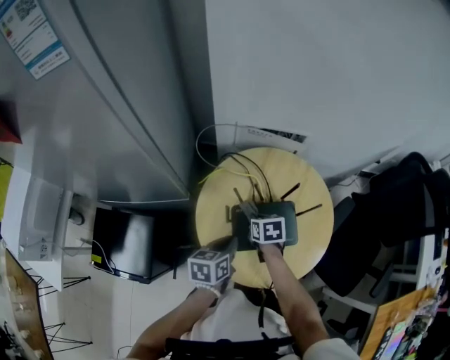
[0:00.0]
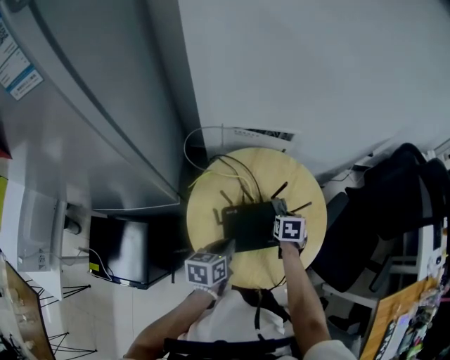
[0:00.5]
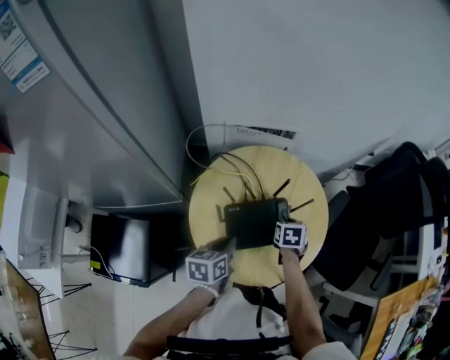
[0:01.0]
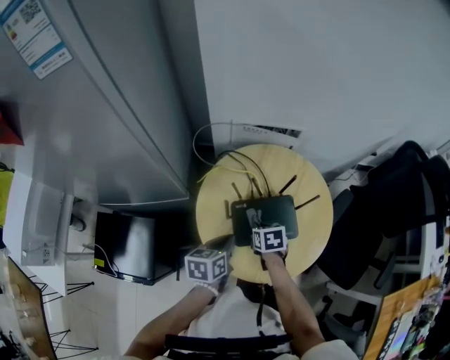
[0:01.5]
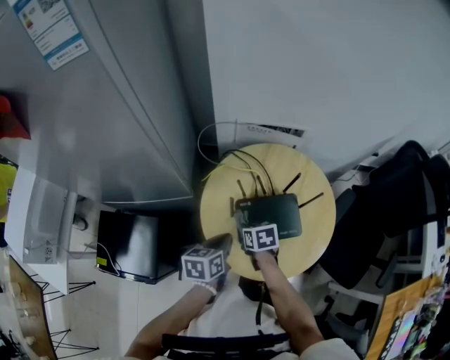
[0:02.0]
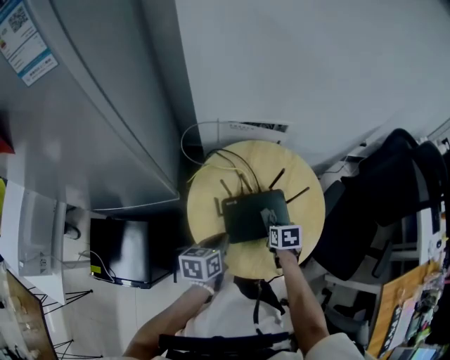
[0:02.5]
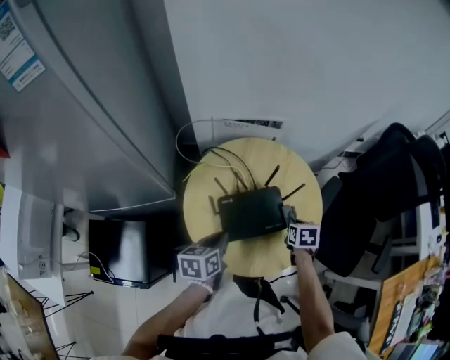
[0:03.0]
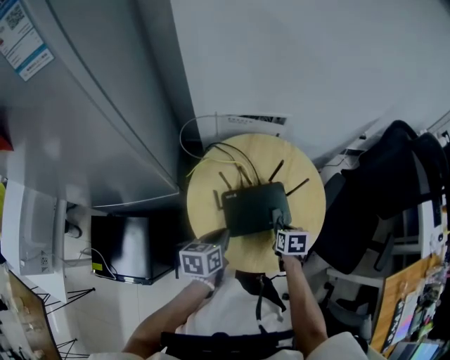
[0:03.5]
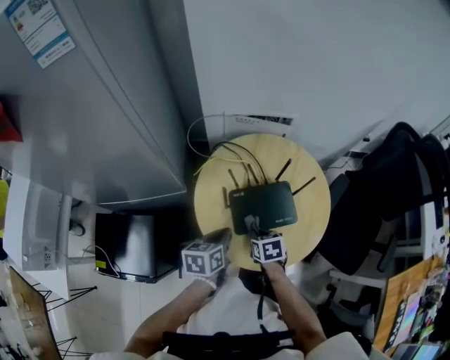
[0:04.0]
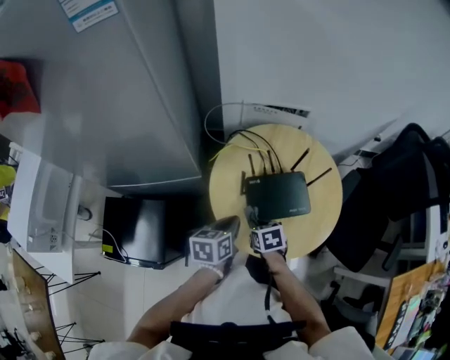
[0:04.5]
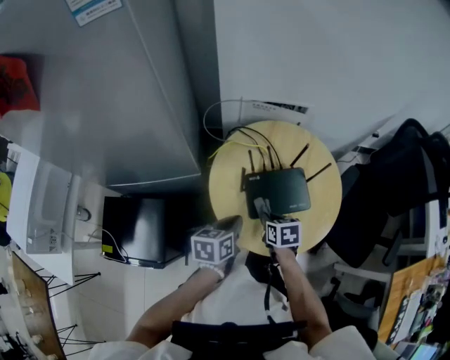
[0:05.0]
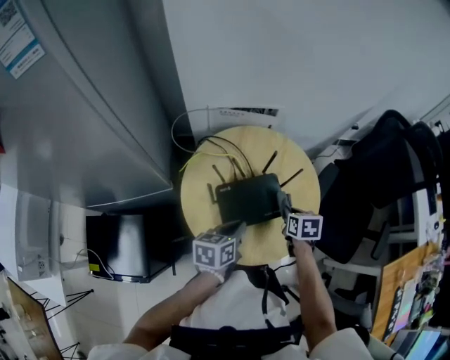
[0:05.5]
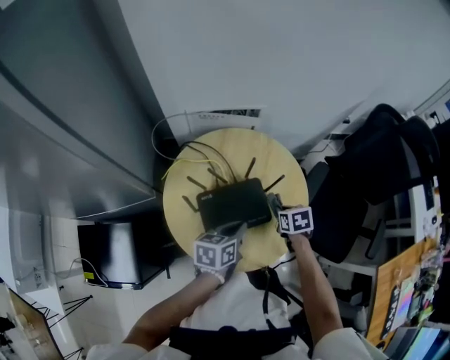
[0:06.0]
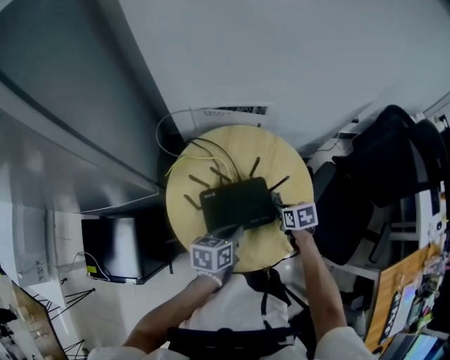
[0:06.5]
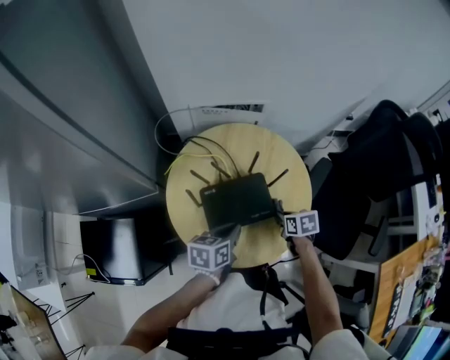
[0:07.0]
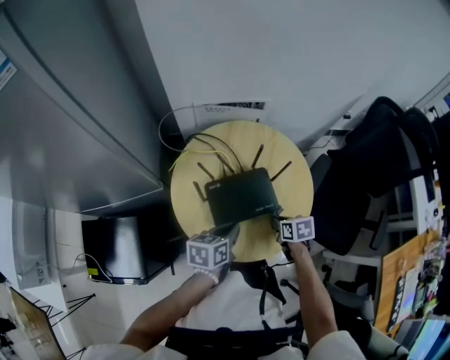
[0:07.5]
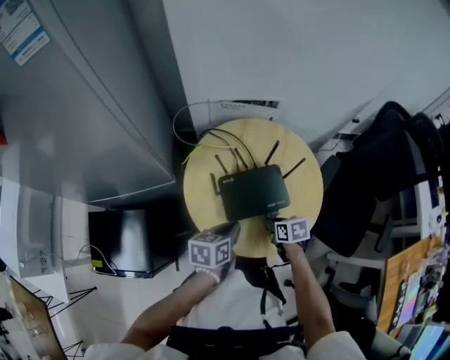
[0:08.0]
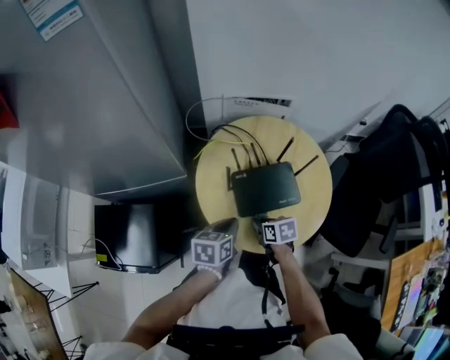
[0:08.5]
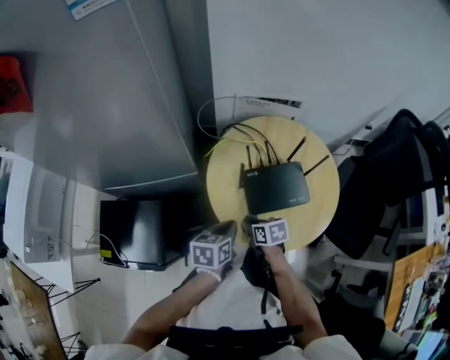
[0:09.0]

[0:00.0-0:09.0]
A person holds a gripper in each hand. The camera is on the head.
0:04.5 to 0:07.0: The right gripper is displaced to the right by about 25 cm, while the left gripper shifts some 15 cm to the right.
0:07.0 to 0:09.0: The right gripper is displaced to the left by approximately 30 cm; the left gripper is displaced to the left by approximately 15 cm.

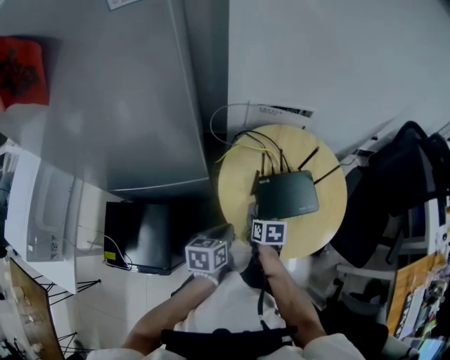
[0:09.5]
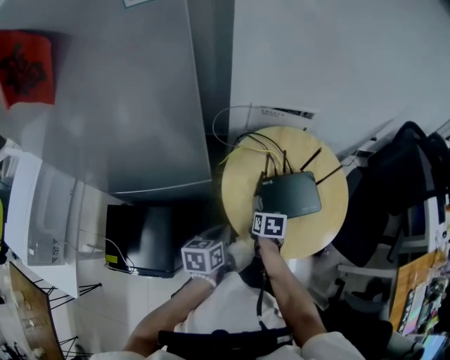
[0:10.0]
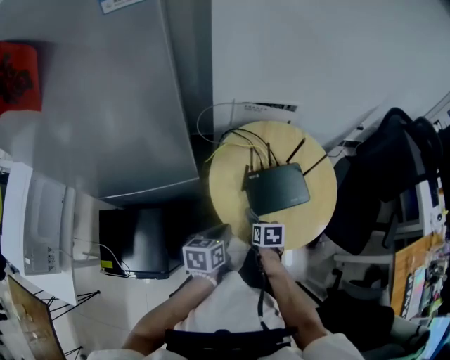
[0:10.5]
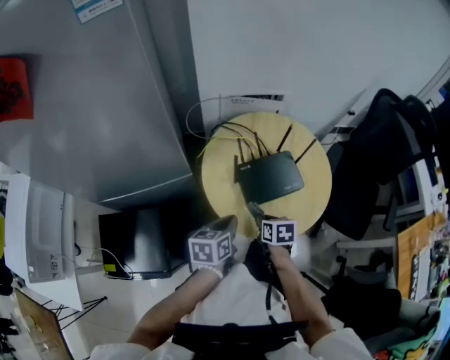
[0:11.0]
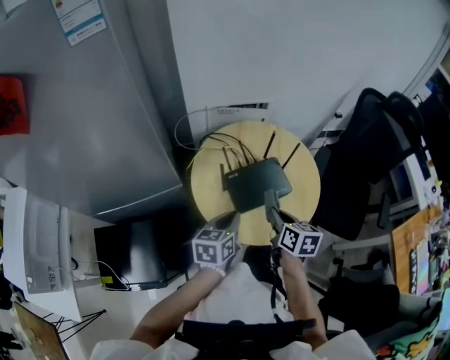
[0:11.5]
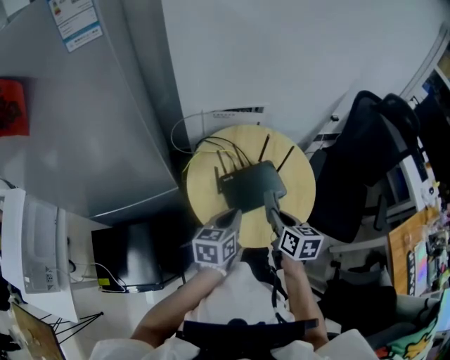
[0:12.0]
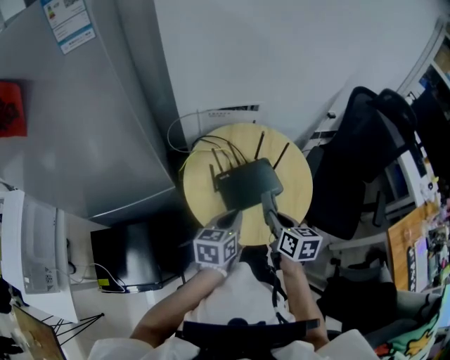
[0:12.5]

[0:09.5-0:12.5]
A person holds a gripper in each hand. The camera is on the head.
0:09.5 to 0:11.0: The right gripper travels to the right and backward by about 10 cm; the left gripper ends up some 5 cm from where it was.
0:11.0 to 0:12.5: The left gripper goes roughly 10 cm to the right and upward. The right gripper goes some 15 cm upward and to the right, and turns by some 20 degrees.

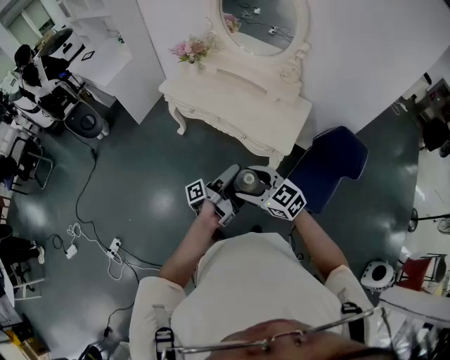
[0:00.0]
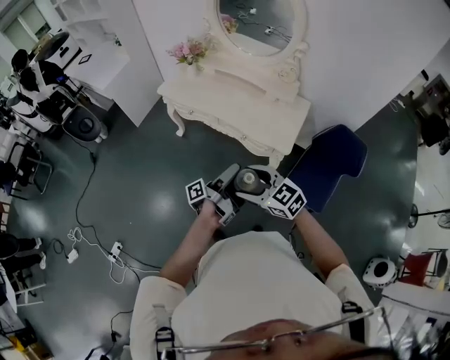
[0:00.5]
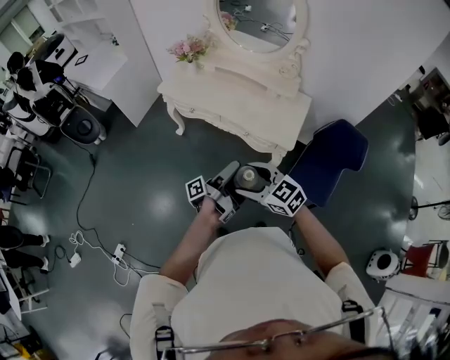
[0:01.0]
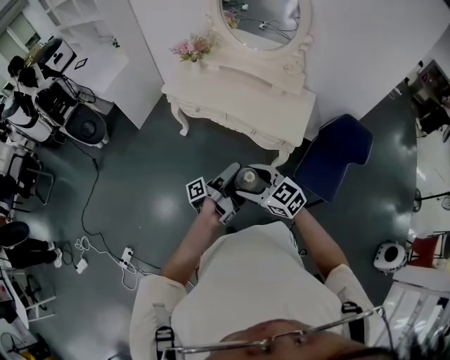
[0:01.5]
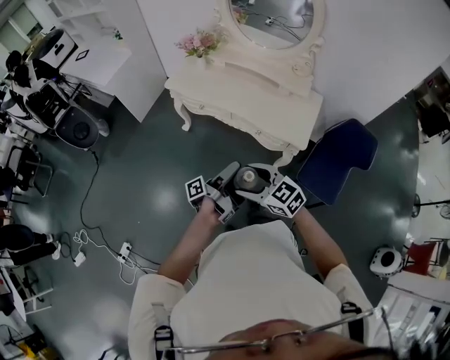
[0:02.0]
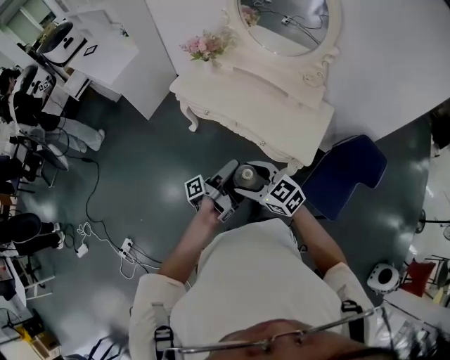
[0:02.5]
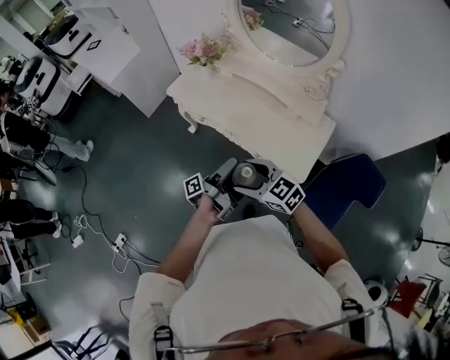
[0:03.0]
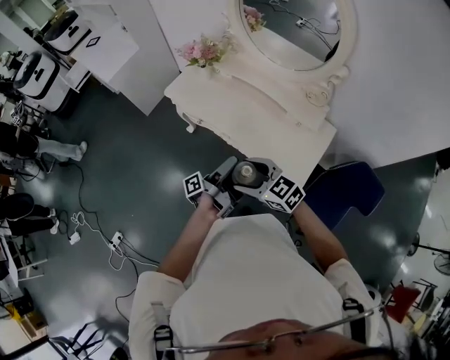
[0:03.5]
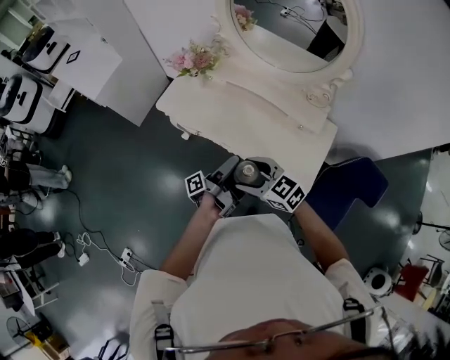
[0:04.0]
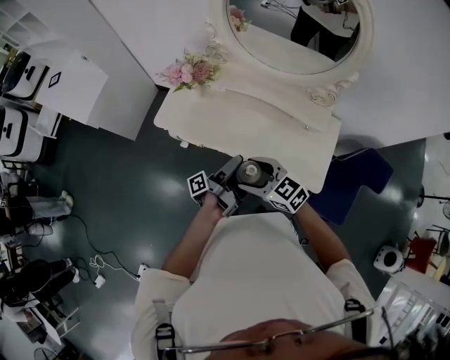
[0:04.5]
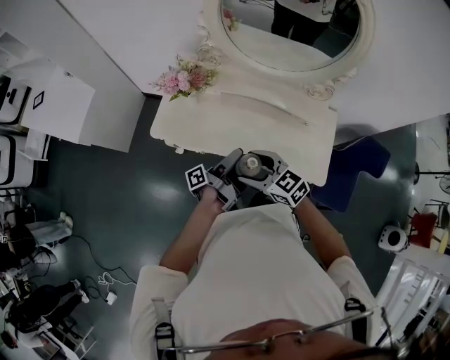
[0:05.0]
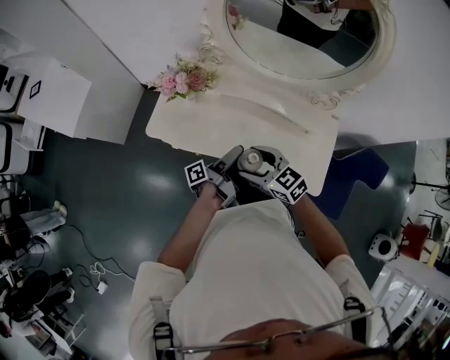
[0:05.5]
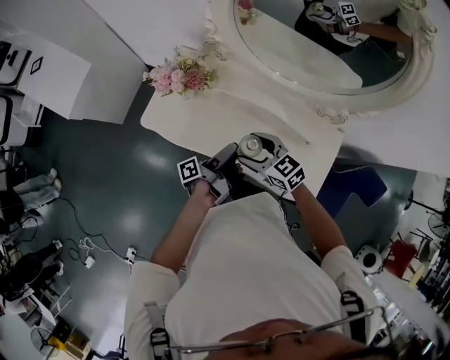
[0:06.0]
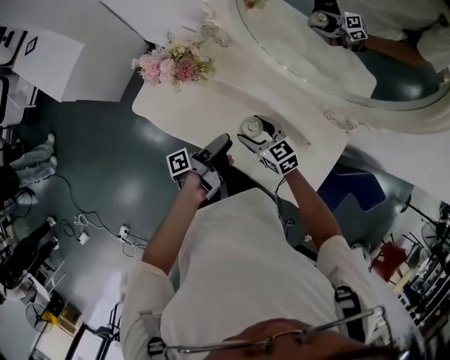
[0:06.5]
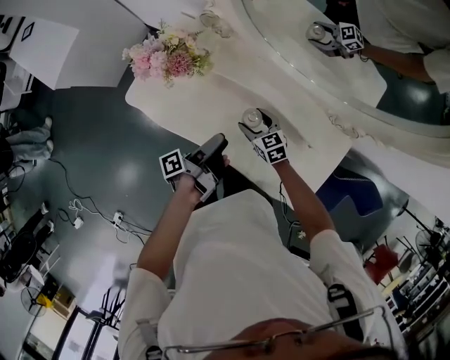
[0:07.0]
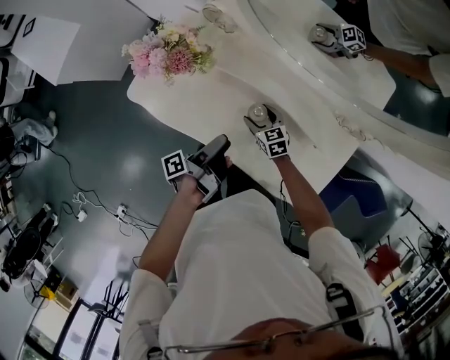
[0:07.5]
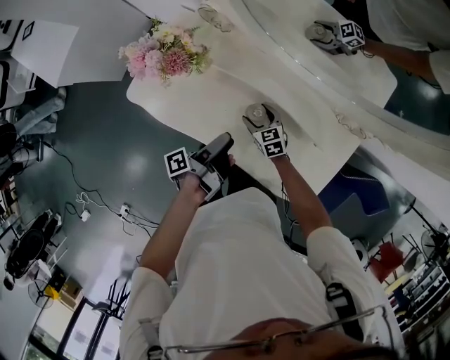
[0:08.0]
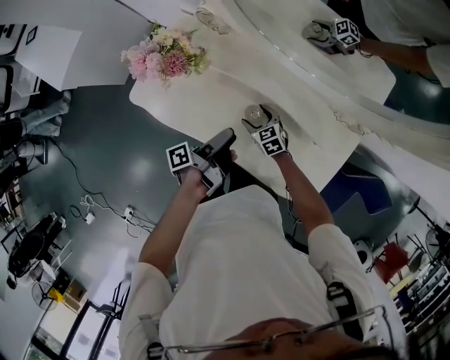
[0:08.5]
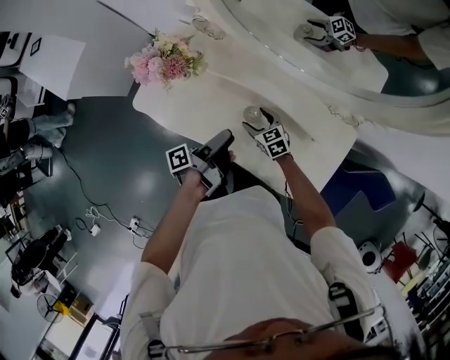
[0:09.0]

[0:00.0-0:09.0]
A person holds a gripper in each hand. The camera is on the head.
0:00.0 to 0:02.0: The right gripper moves approximately 10 cm.
0:02.0 to 0:04.5: The right gripper shifts by approximately 35 cm.
0:04.5 to 0:07.0: The right gripper ends up some 40 cm from where it was.

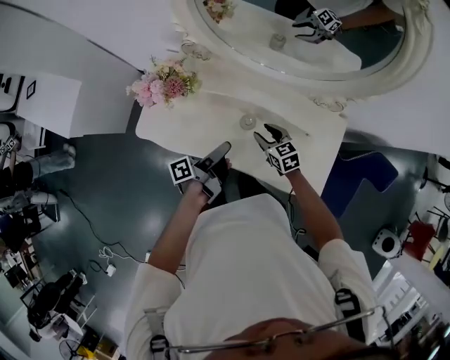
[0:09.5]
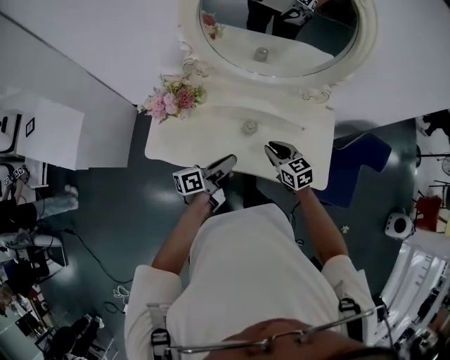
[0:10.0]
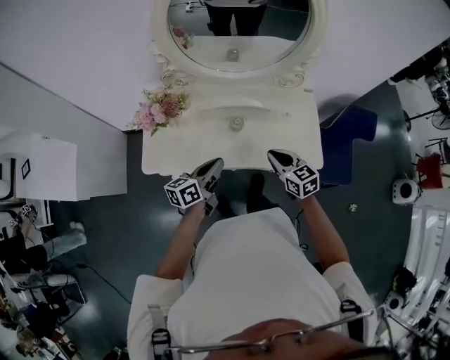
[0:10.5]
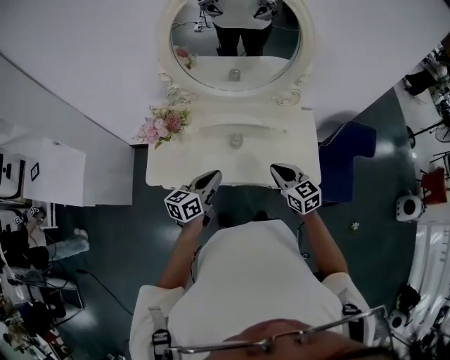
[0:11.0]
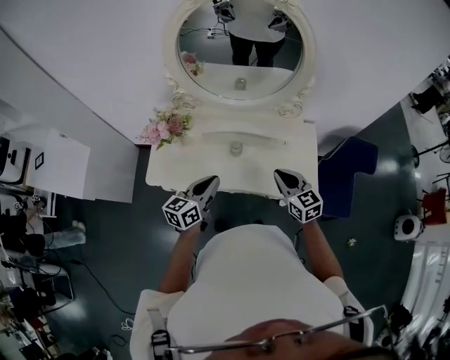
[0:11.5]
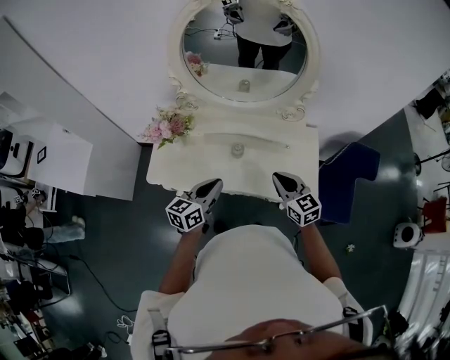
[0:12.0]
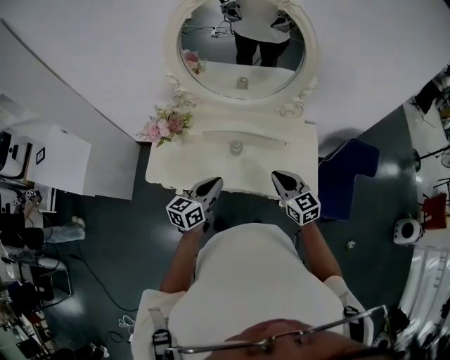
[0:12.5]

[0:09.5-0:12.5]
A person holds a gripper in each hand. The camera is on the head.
0:09.5 to 0:11.0: The right gripper heads upward, covering about 15 cm, rotates approximately 20 degrees, and closes.

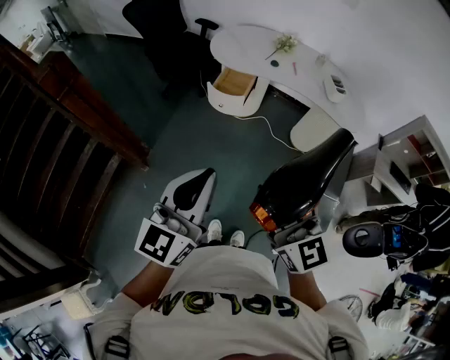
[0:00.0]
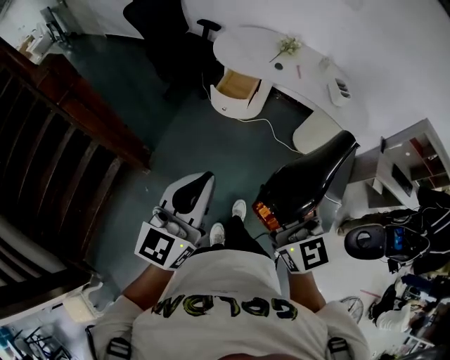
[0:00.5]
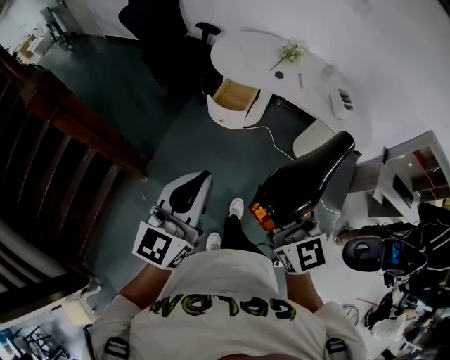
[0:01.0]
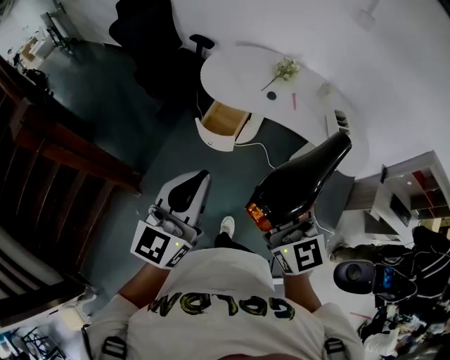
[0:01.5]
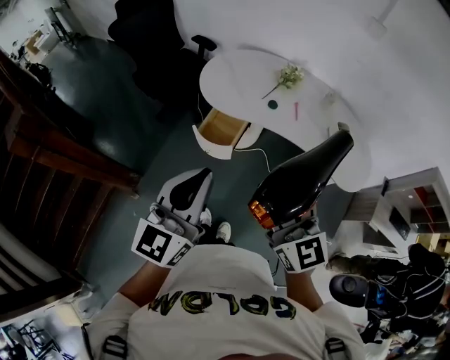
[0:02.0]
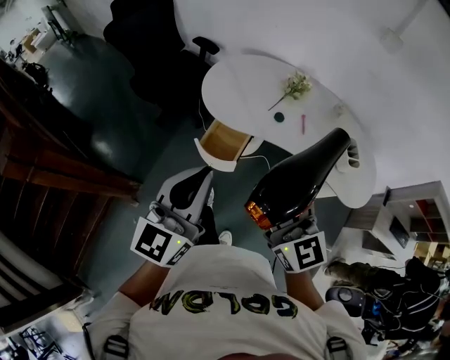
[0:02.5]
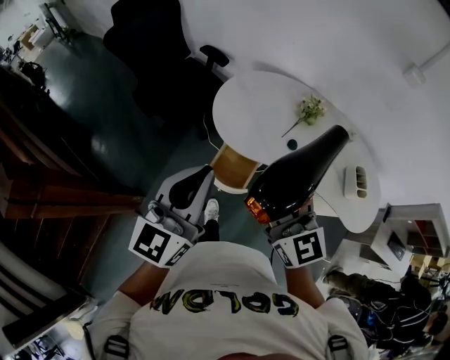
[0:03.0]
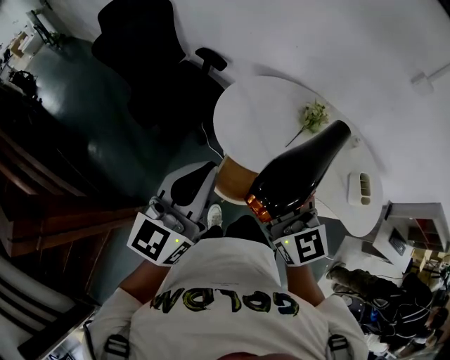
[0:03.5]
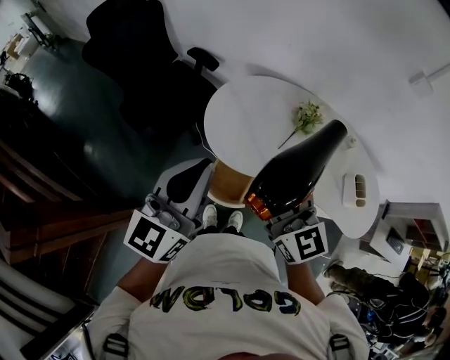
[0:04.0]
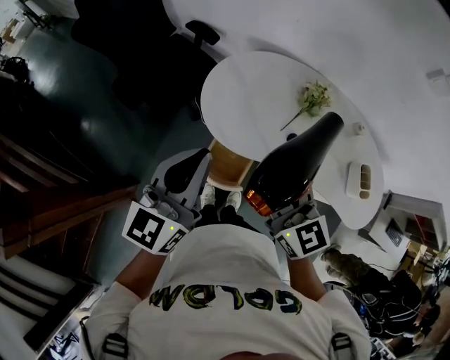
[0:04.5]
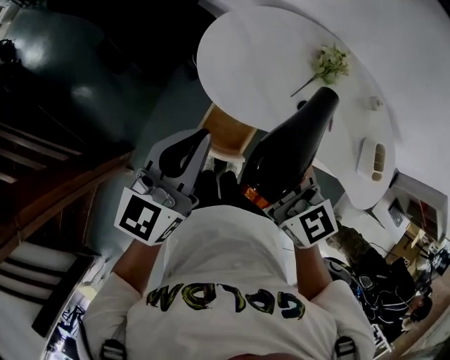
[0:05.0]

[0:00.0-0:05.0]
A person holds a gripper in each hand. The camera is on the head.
0:00.0 to 0:02.5: Both grippers are carried forward, some 40 cm.
0:02.5 to 0:05.0: The right gripper heads forward and downward, covering some 30 cm, and turns by some 20 degrees; the left gripper goes roughly 30 cm forward.
